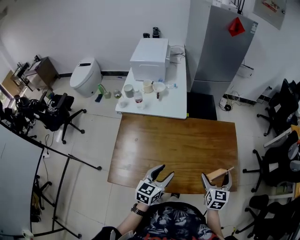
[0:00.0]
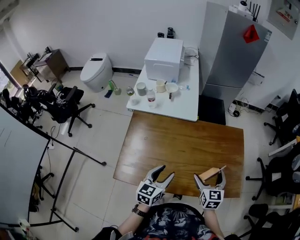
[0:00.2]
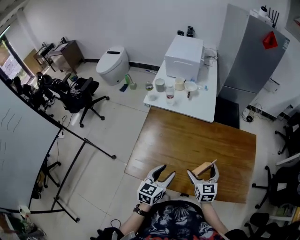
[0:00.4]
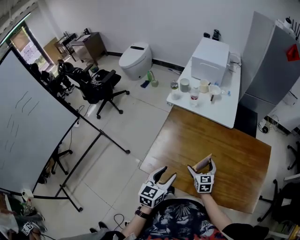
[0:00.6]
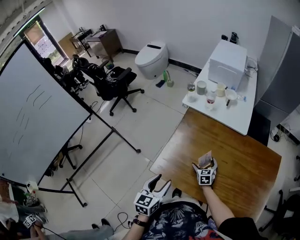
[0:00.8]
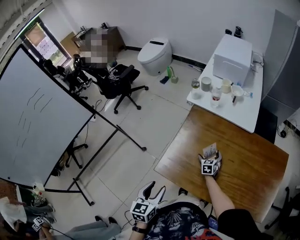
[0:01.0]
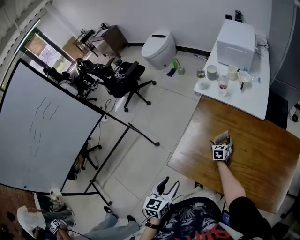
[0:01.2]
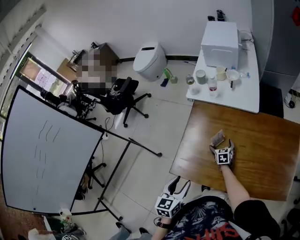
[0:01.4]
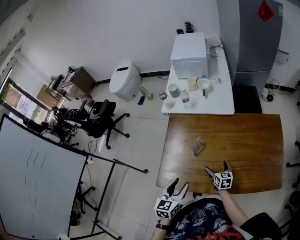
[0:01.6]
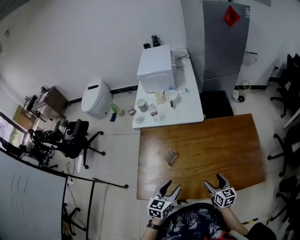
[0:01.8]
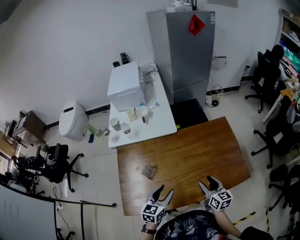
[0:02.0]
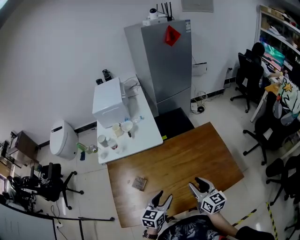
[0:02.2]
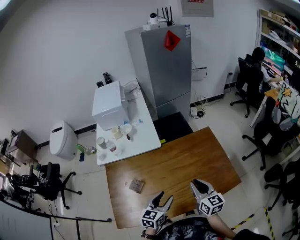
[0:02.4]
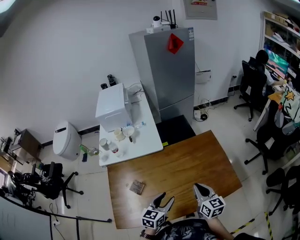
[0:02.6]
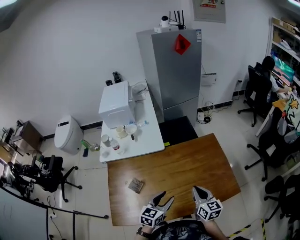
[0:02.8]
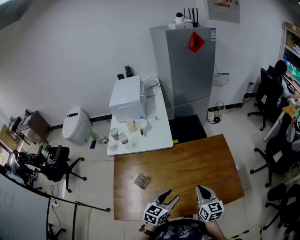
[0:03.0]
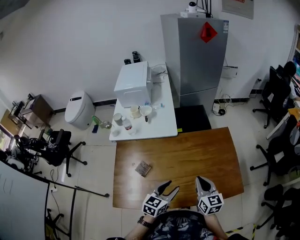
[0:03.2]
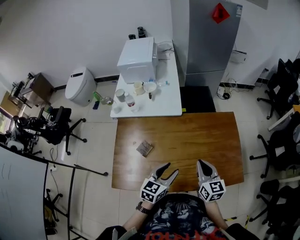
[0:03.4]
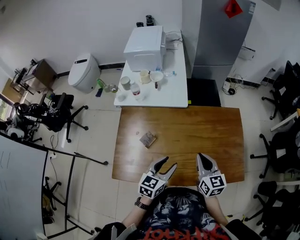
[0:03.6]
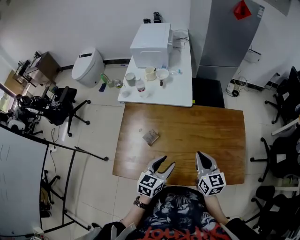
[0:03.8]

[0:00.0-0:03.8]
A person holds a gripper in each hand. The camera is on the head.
0:00.0 to 0:01.2: The left gripper moves roughly 35 cm, and changes its angle by approximately 40 degrees, while the right gripper changes place by approximately 50 cm, and swivels about 30 degrees.
0:01.2 to 0:02.6: The left gripper moves some 40 cm, and swivels some 50 degrees; the right gripper ends up roughly 50 cm from where it was, swivels some 50 degrees, and closes its fingers.
0:02.6 to 0:03.8: The grippers both shift to the left by some 10 cm.

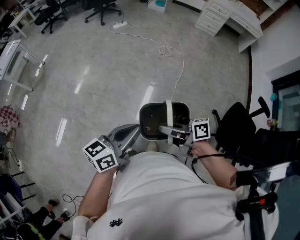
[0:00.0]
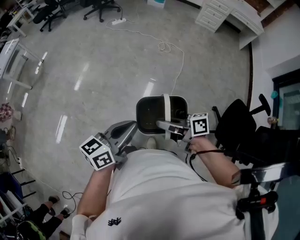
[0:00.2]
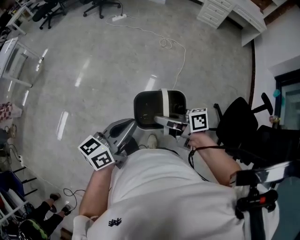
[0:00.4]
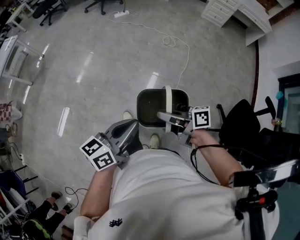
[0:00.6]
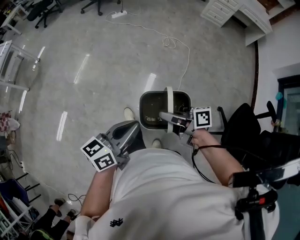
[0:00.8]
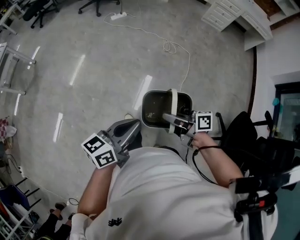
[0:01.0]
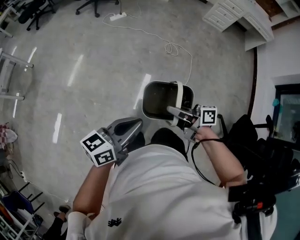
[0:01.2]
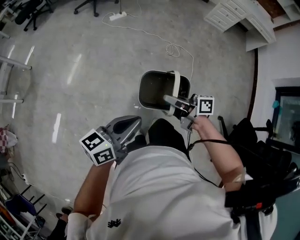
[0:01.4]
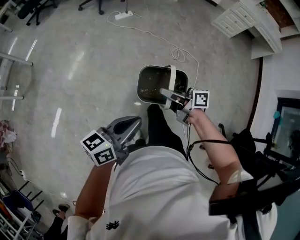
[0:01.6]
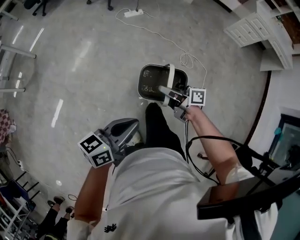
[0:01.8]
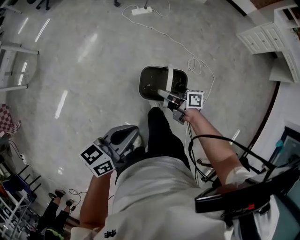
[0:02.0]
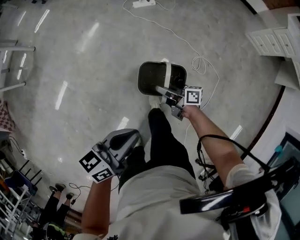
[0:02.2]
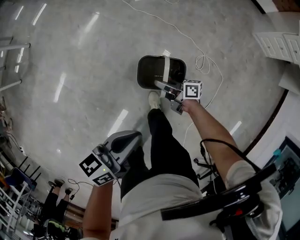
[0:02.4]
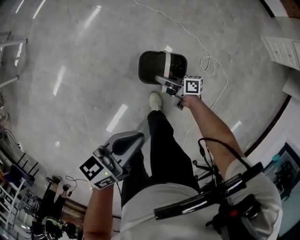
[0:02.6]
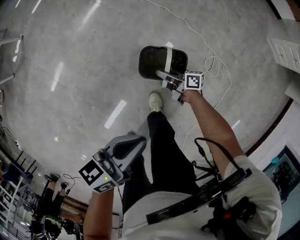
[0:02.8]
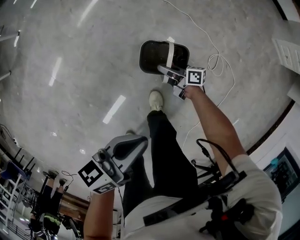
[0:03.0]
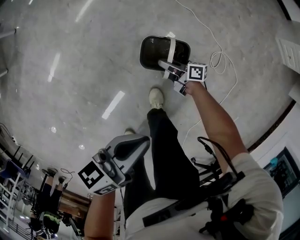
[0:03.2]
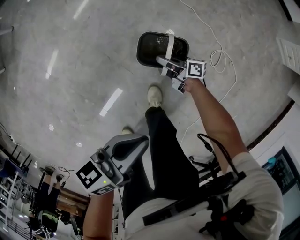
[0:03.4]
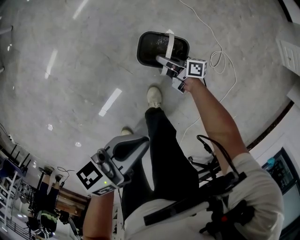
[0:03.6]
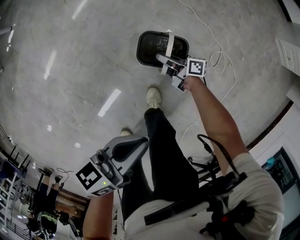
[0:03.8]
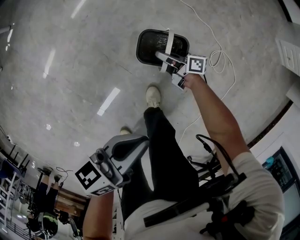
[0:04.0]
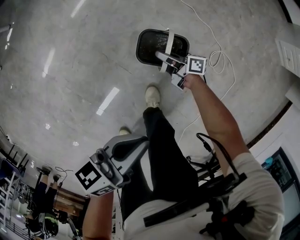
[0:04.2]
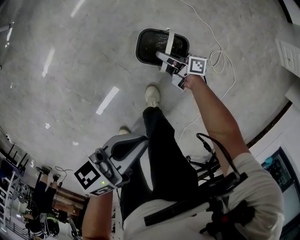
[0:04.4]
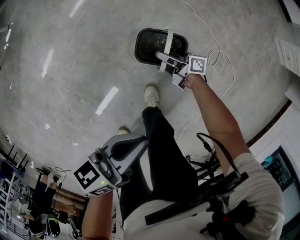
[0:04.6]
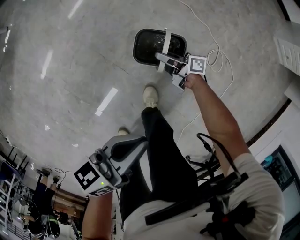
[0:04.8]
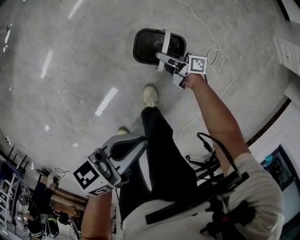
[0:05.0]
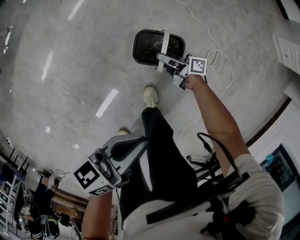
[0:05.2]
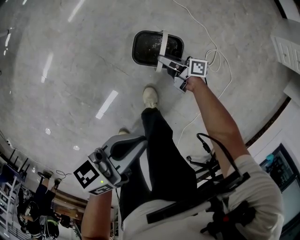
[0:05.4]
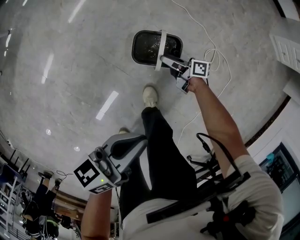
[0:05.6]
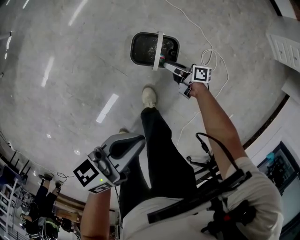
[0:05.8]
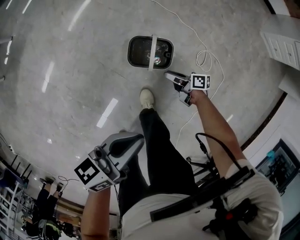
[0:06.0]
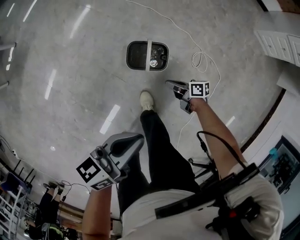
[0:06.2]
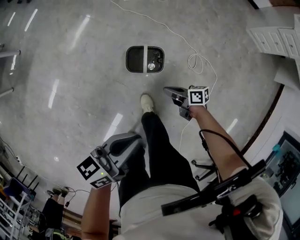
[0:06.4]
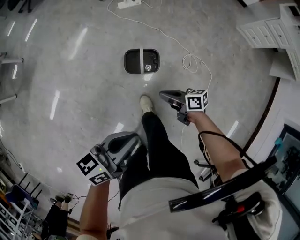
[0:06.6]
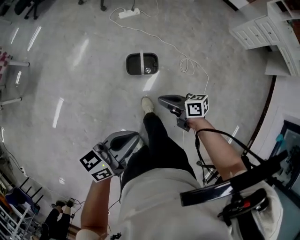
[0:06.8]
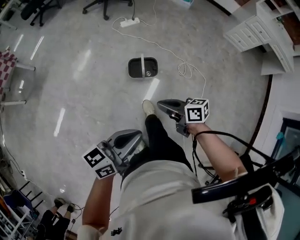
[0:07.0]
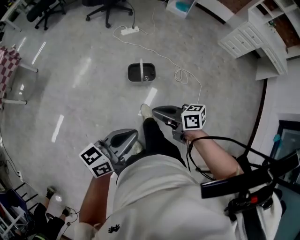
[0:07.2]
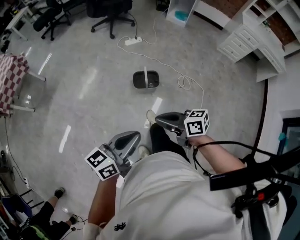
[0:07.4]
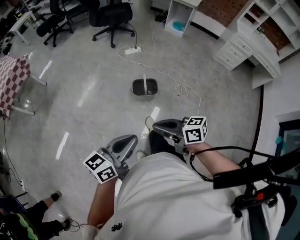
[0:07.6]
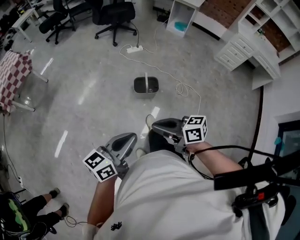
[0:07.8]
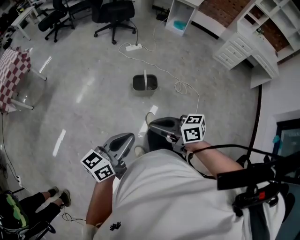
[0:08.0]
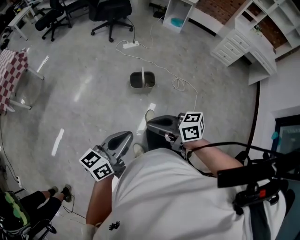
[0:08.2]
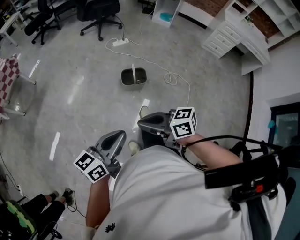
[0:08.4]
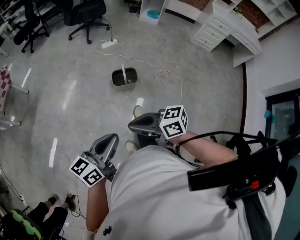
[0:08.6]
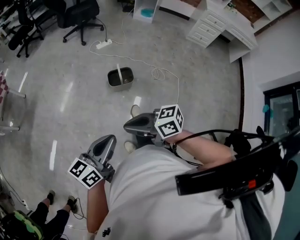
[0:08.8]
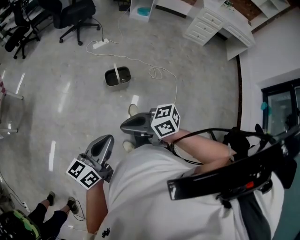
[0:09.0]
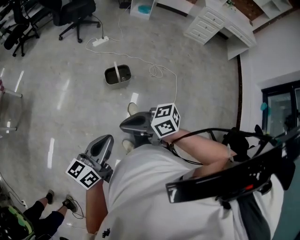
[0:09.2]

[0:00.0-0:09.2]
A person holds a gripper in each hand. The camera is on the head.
0:00.0 to 0:01.6: The pair of grippers is taken forward, approximately 50 cm.
0:01.6 to 0:03.0: The left gripper moves forward and downward, about 50 cm, and rotates some 20 degrees; the right gripper is displaced downward and forward by some 70 cm, and changes its angle by approximately 20 degrees.
0:03.0 to 0:04.6: There are only small adjustments of the grippers.
0:04.6 to 0:06.2: The right gripper moves backward, to the right and upward, about 20 cm, turns by roughly 20 degrees, and opens, then closes once more, while the left gripper travels upward by some 10 cm.
0:06.2 to 0:07.6: The right gripper goes some 60 cm upward and backward, and swivels approximately 40 degrees, while the left gripper heads backward and upward, covering some 40 cm, and turns by some 20 degrees.
0:07.6 to 0:09.2: The right gripper moves to the left, about 5 cm.

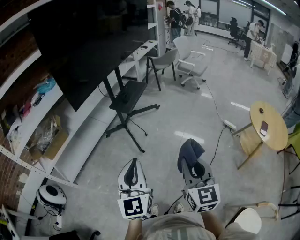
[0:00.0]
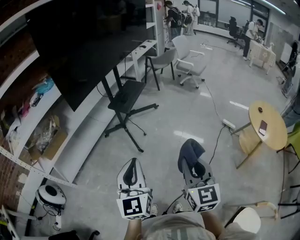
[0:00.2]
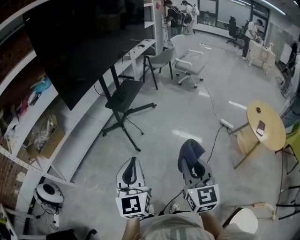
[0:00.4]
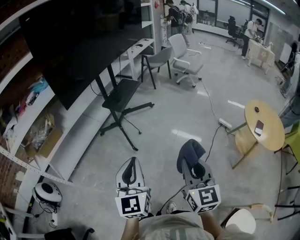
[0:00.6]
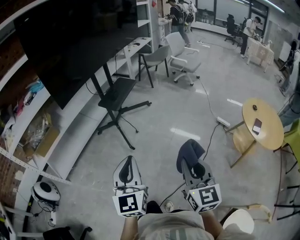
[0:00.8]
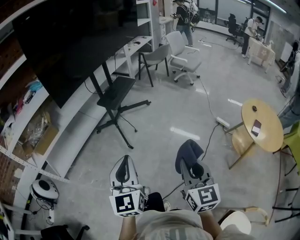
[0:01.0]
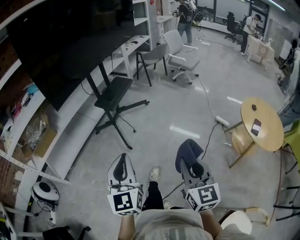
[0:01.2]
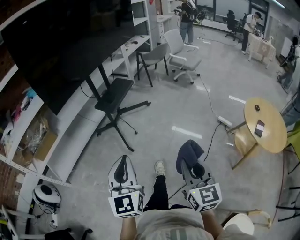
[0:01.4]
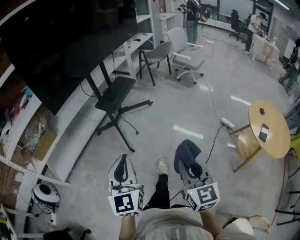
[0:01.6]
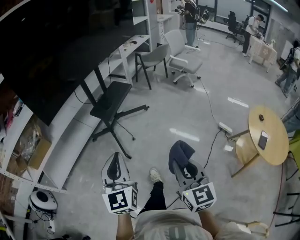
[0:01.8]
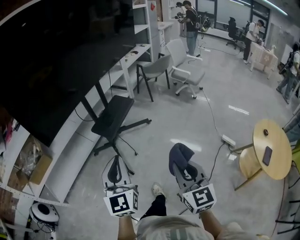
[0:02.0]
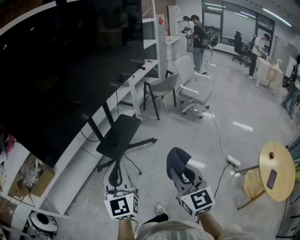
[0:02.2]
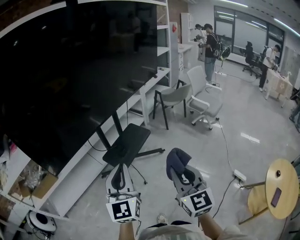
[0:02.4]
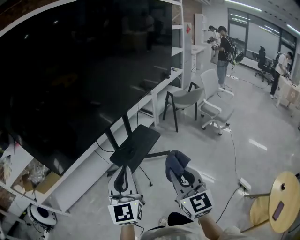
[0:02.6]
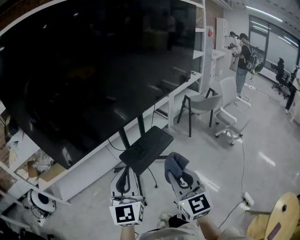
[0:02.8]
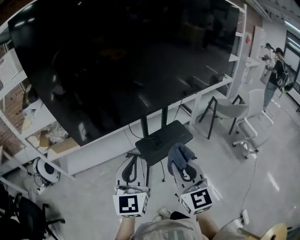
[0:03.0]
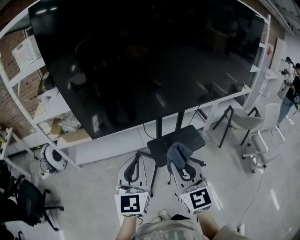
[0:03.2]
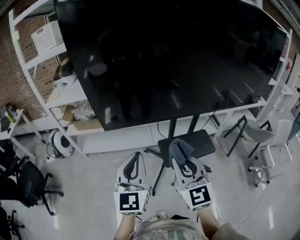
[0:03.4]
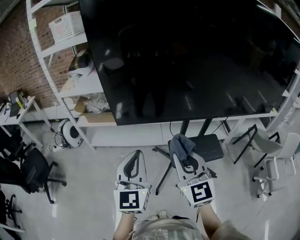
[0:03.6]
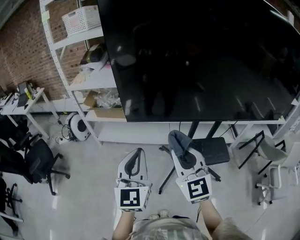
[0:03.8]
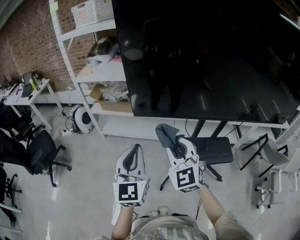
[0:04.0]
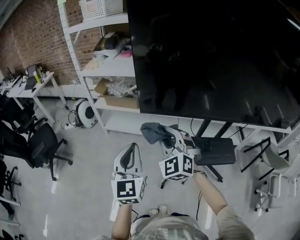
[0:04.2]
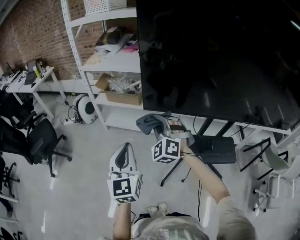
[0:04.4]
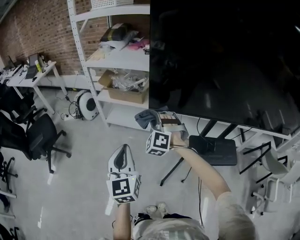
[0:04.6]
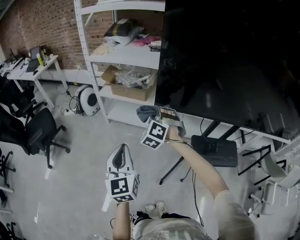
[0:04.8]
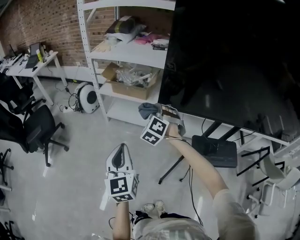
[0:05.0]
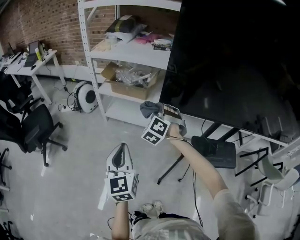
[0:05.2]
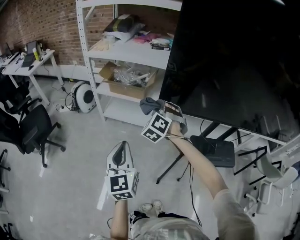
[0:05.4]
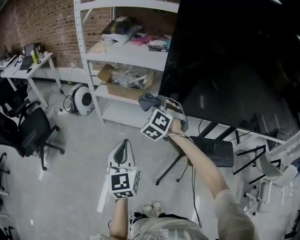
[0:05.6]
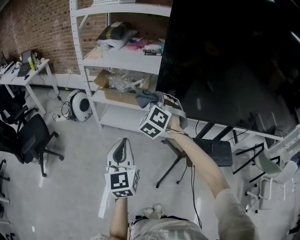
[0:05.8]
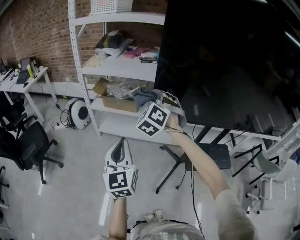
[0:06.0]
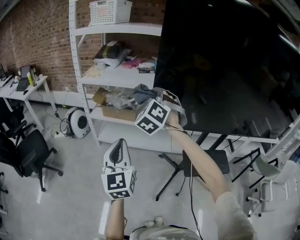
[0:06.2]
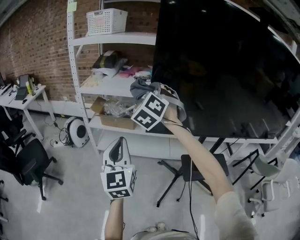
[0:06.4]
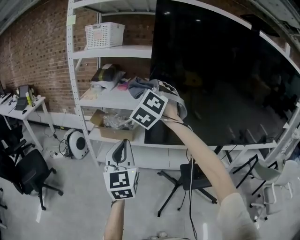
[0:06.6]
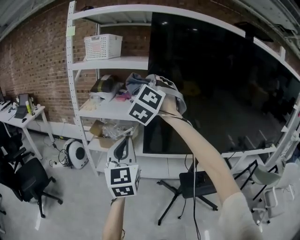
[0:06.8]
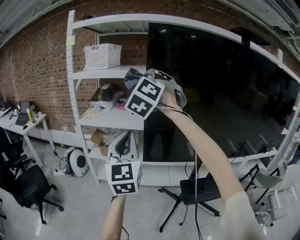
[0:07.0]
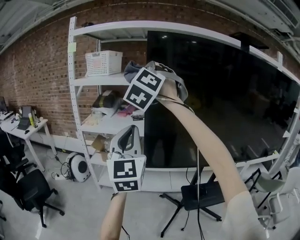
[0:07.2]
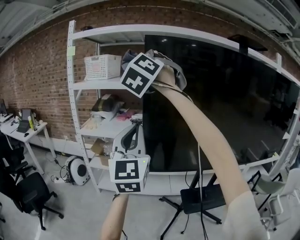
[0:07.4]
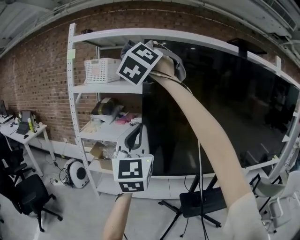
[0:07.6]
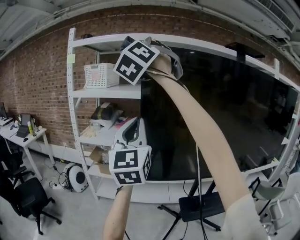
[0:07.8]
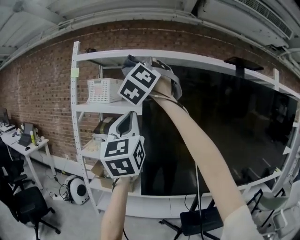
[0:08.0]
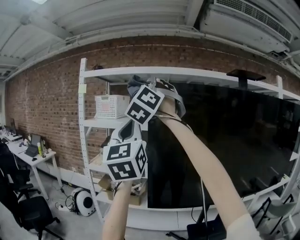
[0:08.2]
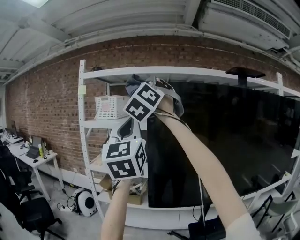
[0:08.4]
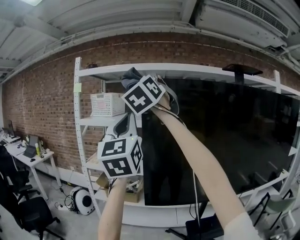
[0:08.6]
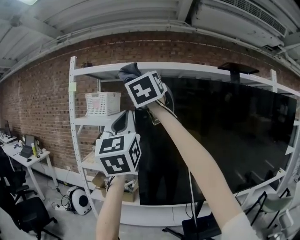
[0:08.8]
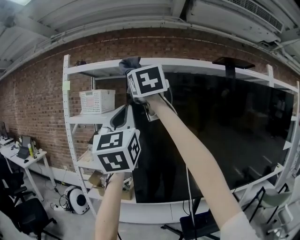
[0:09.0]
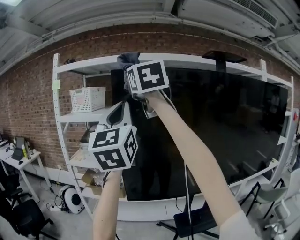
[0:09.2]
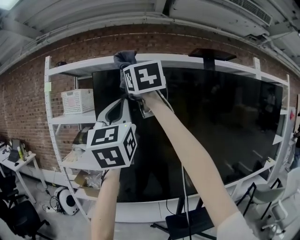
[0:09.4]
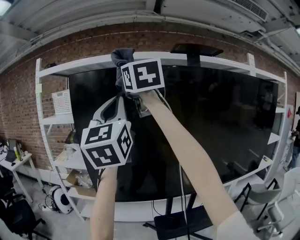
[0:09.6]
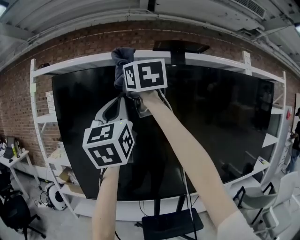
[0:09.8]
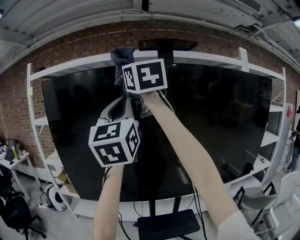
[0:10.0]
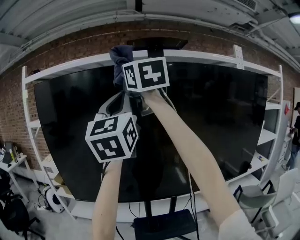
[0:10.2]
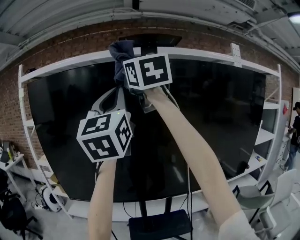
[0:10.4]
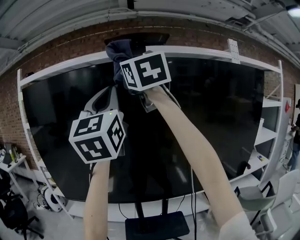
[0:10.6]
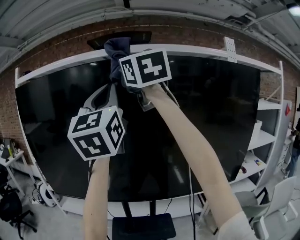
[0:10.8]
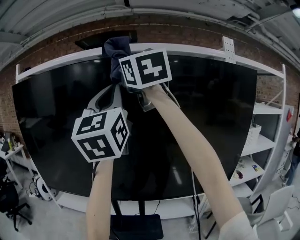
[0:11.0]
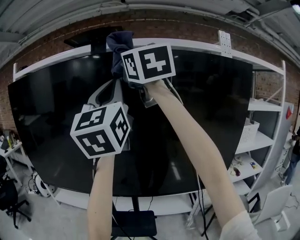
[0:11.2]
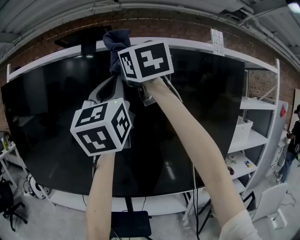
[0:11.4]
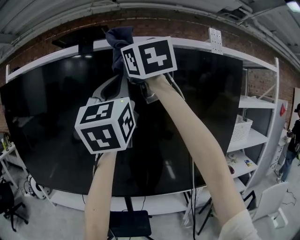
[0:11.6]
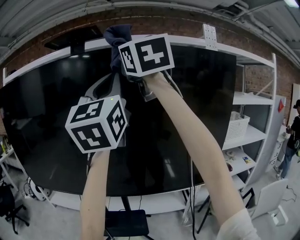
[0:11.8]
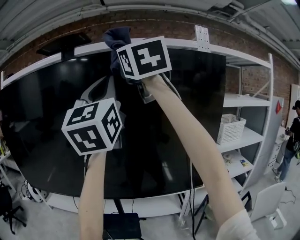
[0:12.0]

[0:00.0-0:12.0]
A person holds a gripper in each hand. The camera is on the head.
0:00.0 to 0:01.6: The right gripper shifts roughly 15 cm to the right, forward and downward; the left gripper travels to the right and forward by about 10 cm.
0:01.6 to 0:03.0: The left gripper changes place by about 40 cm, and turns by roughly 30 degrees, while the right gripper changes place by some 50 cm, and changes its angle by about 40 degrees.
0:03.0 to 0:04.4: The left gripper moves approximately 25 cm, and turns by about 40 degrees, while the right gripper changes place by about 40 cm, and twists approximately 60 degrees counterclockwise, seen from behind.
0:04.4 to 0:06.0: The right gripper shifts some 15 cm forward, upward and to the left. The left gripper travels to the left and forward by roughly 10 cm.
0:06.0 to 0:07.6: The left gripper travels upward by some 30 cm, and turns by roughly 30 degrees. The right gripper travels upward by approximately 50 cm, and changes its angle by about 30 degrees.
0:07.6 to 0:09.0: The right gripper moves to the right, approximately 5 cm, and rotates around the line of its fingers by approximately 50 degrees, clockwise from behind; the left gripper moves upward, some 15 cm.
0:09.0 to 0:10.4: The two grippers travel together, to the right, roughly 40 cm.
0:10.4 to 0:12.0: The grippers both shift to the right by some 35 cm.
